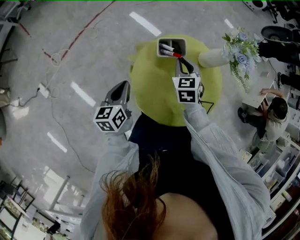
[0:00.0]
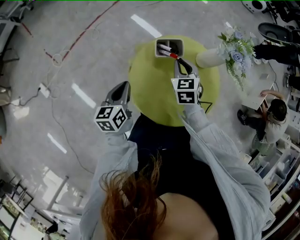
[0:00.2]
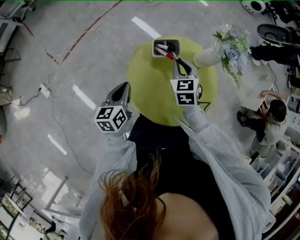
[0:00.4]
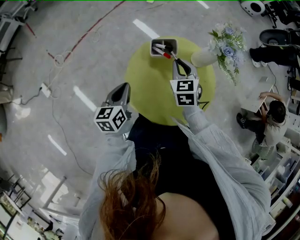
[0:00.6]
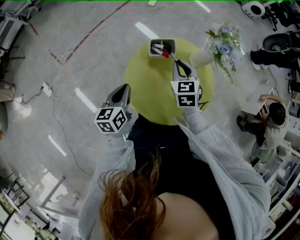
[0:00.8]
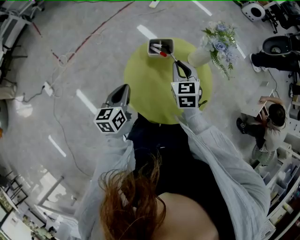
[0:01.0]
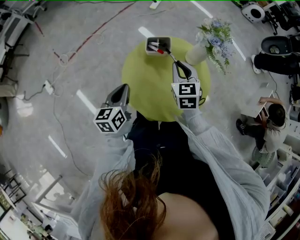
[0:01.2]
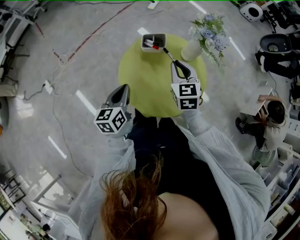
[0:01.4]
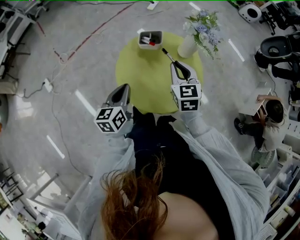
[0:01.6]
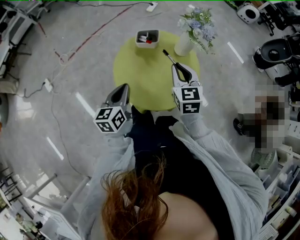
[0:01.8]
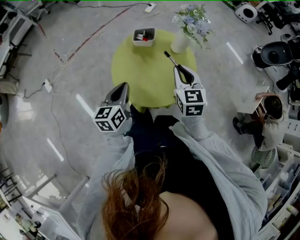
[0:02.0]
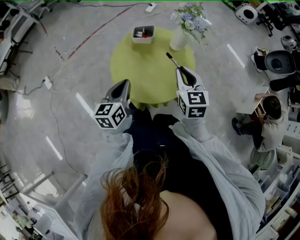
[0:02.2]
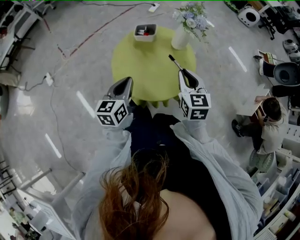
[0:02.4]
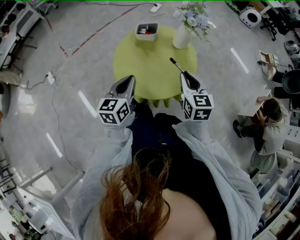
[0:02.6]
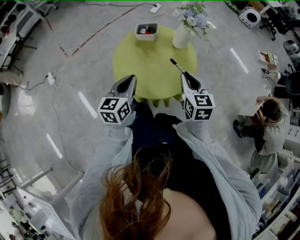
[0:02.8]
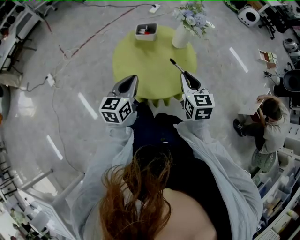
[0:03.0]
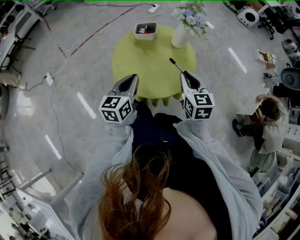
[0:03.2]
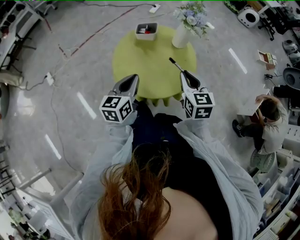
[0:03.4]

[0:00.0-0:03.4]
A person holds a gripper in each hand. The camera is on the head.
0:00.0 to 0:01.6: The right gripper shifts about 15 cm backward, upward and to the right; the left gripper moves to the right and backward, roughly 15 cm.
0:01.6 to 0:03.4: The right gripper moves backward and to the right, approximately 15 cm, while the left gripper travels to the right and backward by approximately 10 cm.

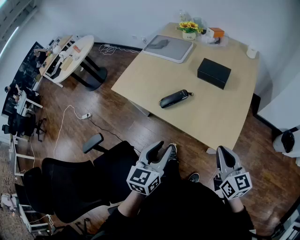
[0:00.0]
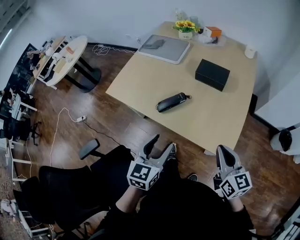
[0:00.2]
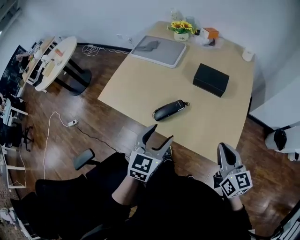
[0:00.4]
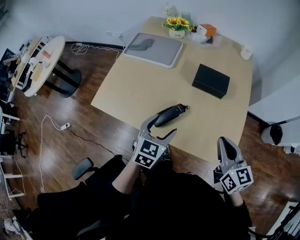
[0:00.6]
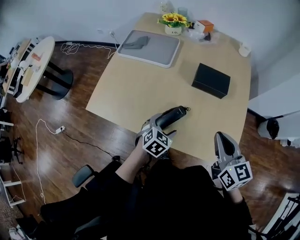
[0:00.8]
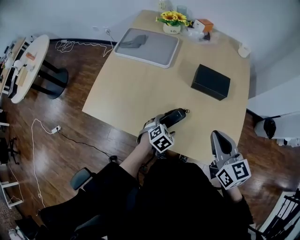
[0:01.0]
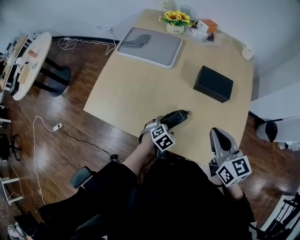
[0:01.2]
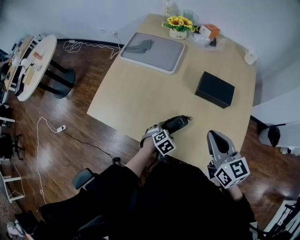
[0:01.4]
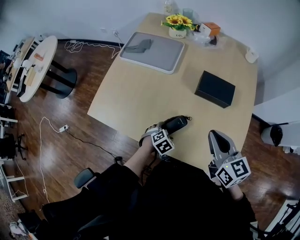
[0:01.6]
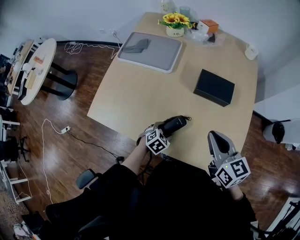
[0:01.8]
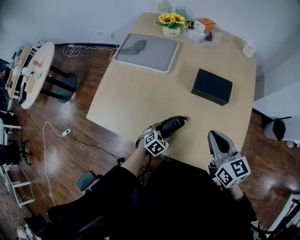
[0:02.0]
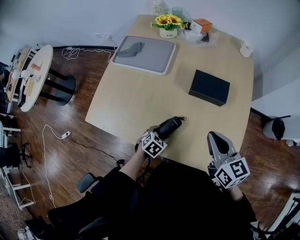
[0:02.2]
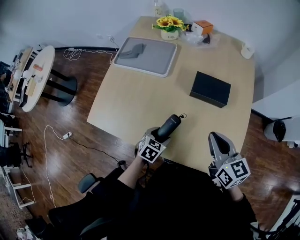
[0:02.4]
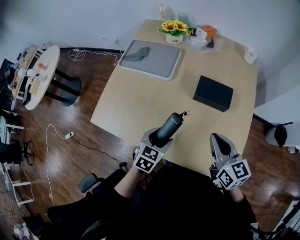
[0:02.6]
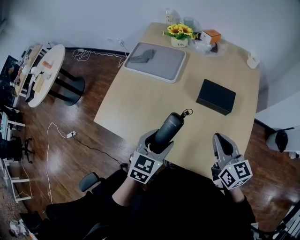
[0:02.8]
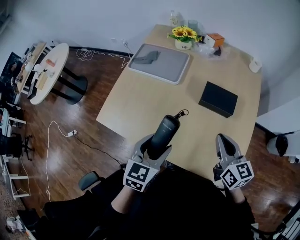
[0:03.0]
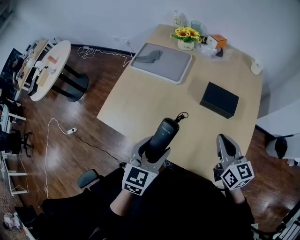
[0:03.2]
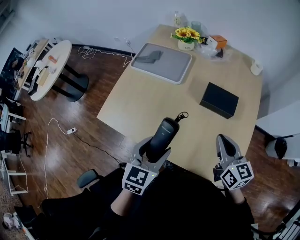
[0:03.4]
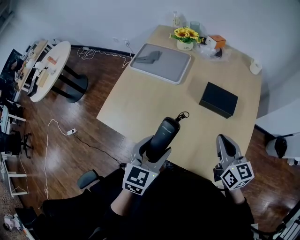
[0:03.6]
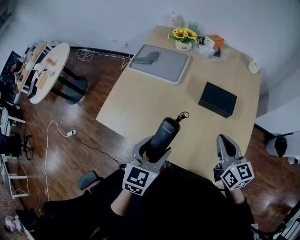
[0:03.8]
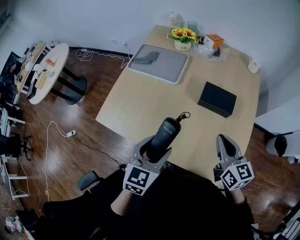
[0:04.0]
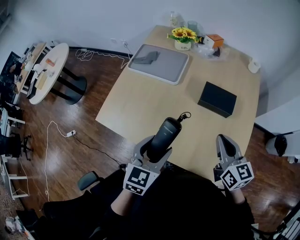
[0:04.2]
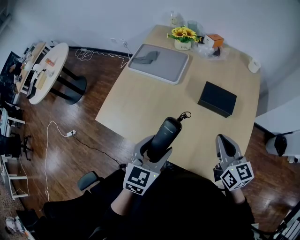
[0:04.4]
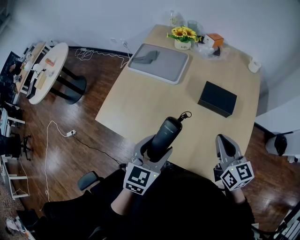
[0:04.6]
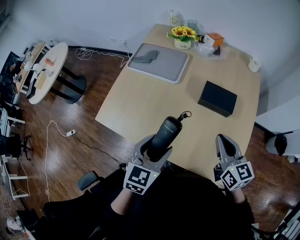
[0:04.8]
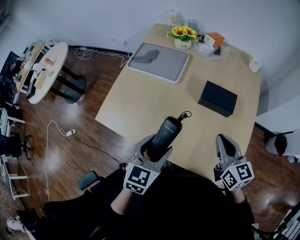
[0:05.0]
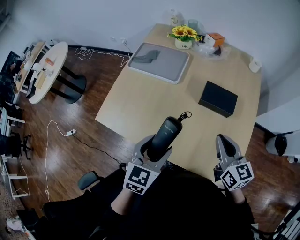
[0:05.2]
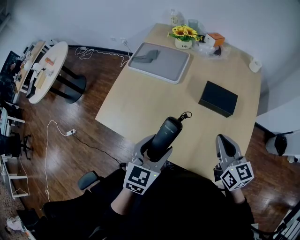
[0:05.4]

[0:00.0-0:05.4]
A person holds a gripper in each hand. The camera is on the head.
0:00.0 to 0:01.4: The left gripper shifts some 40 cm downward and forward, tips its fingers downward by approximately 50 degrees, and opens up; the right gripper goes some 30 cm forward and to the left.
0:01.4 to 0:02.8: The left gripper moves upward, roughly 25 cm, and tilts its fingers roughly 30 degrees upward.
0:02.8 to 0:04.0: The left gripper changes place by approximately 5 cm.
0:04.0 to 0:05.4: Both grippers stay put.

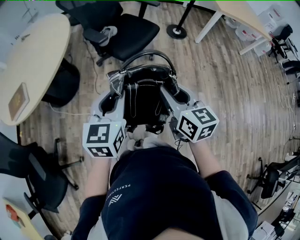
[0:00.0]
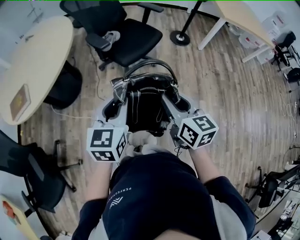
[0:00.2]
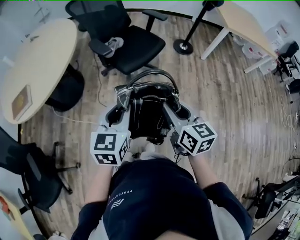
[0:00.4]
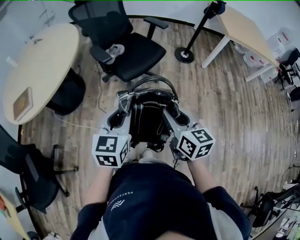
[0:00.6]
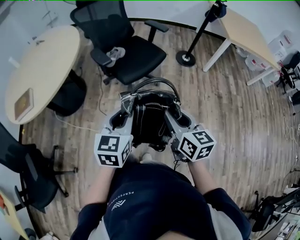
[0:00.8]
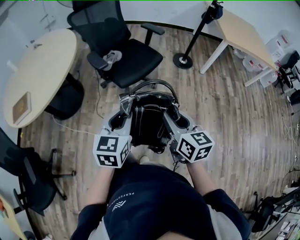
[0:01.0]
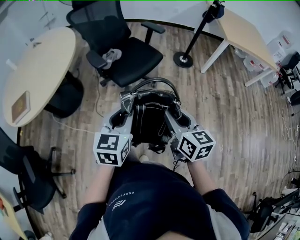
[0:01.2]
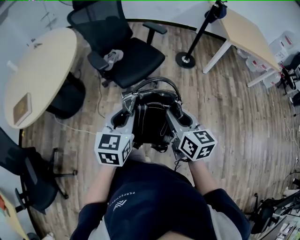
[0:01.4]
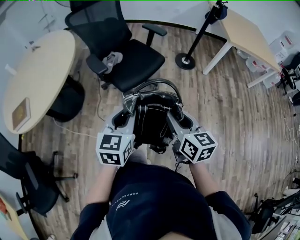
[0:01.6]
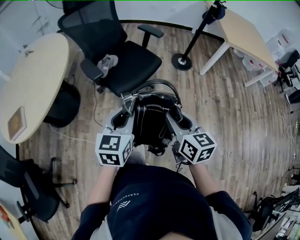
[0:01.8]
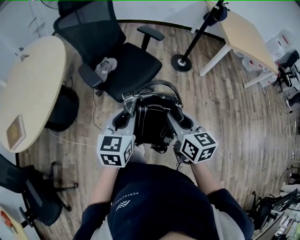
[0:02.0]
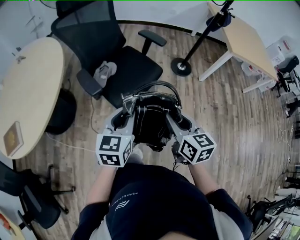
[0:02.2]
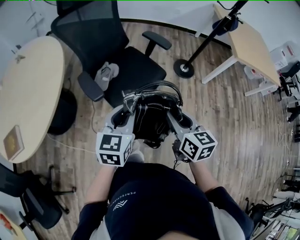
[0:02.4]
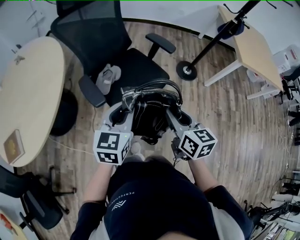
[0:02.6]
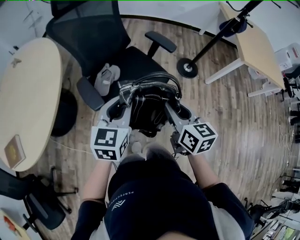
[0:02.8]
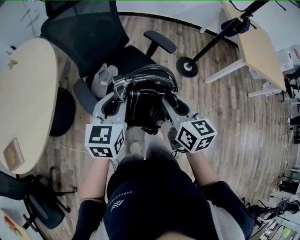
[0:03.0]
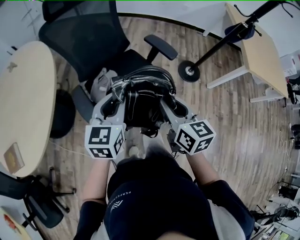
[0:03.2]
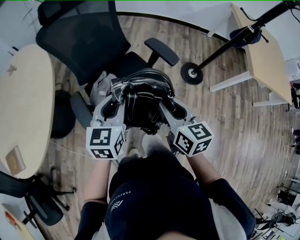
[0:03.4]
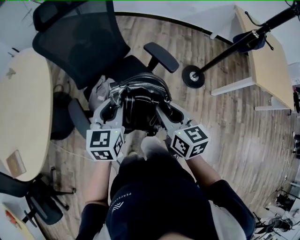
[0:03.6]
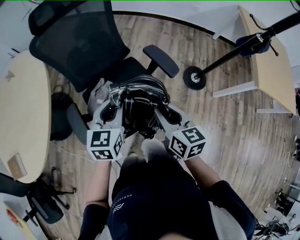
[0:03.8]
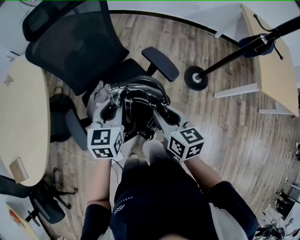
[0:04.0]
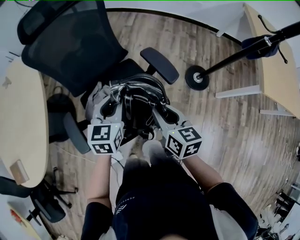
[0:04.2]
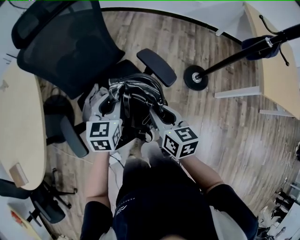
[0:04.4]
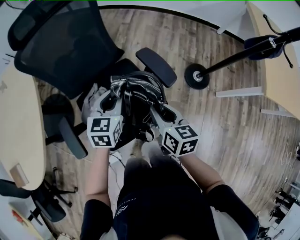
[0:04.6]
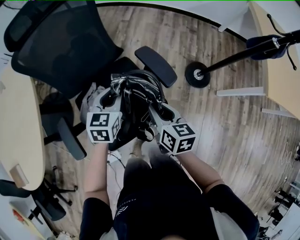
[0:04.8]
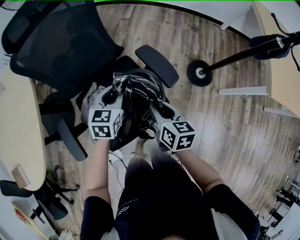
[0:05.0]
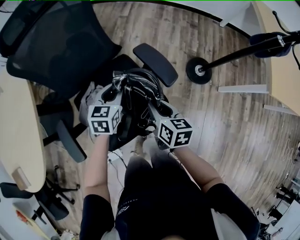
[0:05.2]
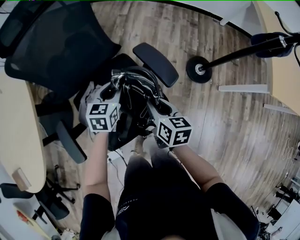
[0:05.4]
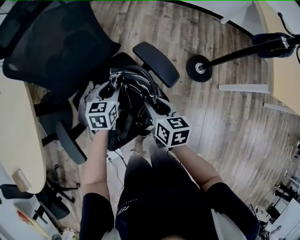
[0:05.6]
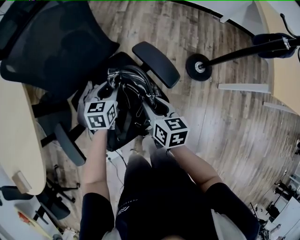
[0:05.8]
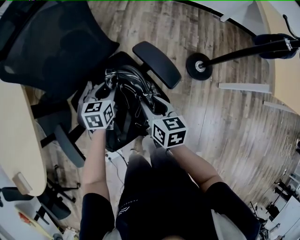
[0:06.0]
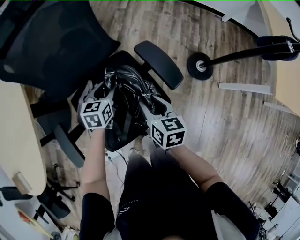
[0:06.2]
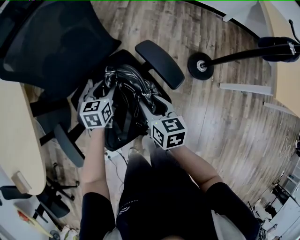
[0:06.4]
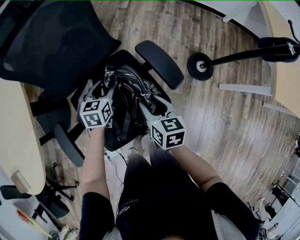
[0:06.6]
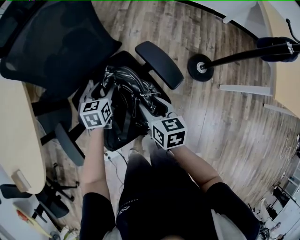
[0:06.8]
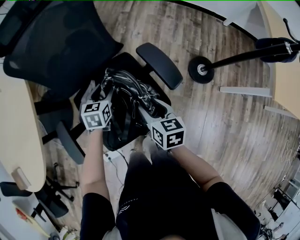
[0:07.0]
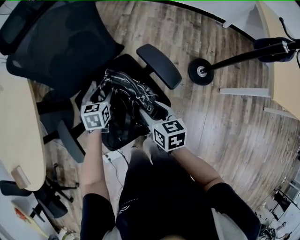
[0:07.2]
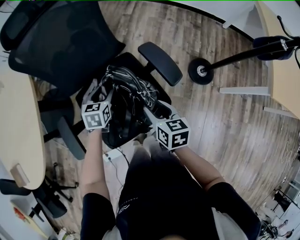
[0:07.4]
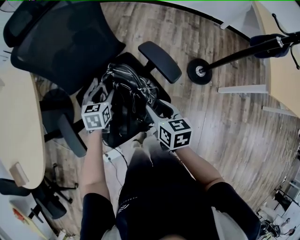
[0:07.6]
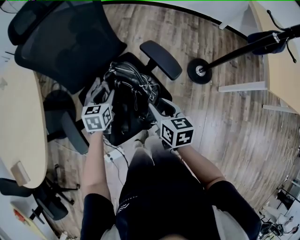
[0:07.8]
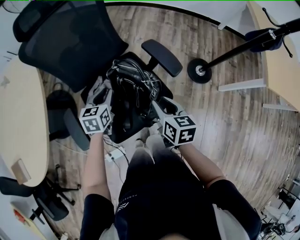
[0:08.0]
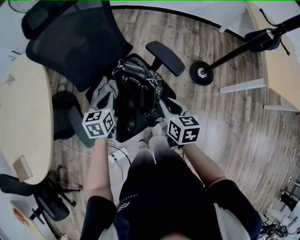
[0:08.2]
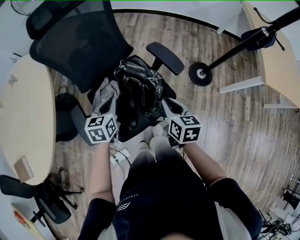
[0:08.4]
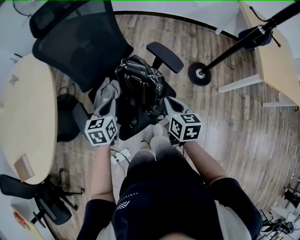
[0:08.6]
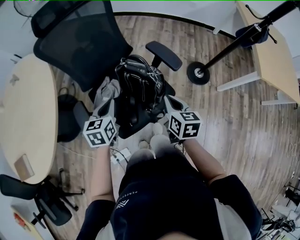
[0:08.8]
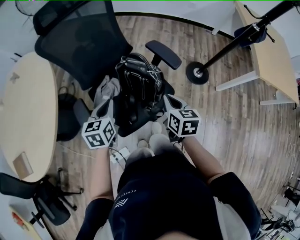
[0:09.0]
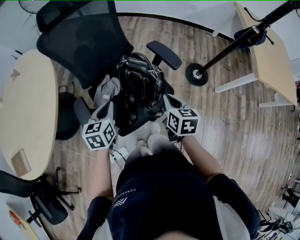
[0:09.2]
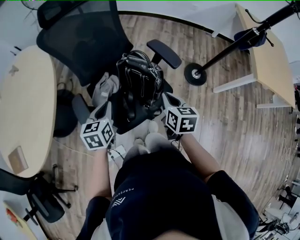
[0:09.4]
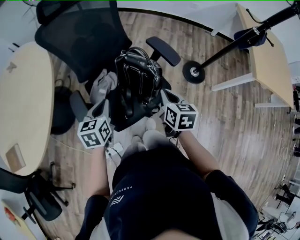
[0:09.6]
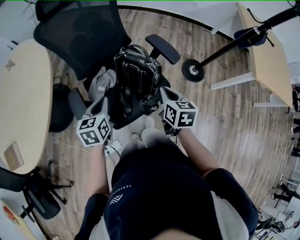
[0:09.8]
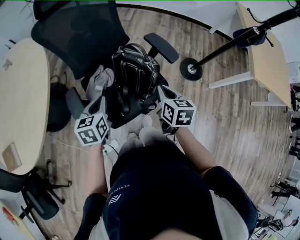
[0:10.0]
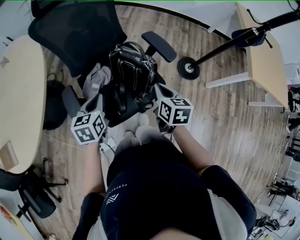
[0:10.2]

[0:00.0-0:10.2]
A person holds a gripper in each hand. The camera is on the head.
0:00.0 to 0:01.4: The two grippers go some 15 cm to the right and forward.
0:01.4 to 0:03.0: Both grippers travel together forward, roughly 35 cm.
0:03.0 to 0:04.4: The grippers both shift forward and downward by roughly 25 cm.
0:04.4 to 0:05.8: Both grippers move downward and forward, roughly 15 cm.
0:05.8 to 0:07.2: The left gripper moves to the left, about 5 cm, and opens.
0:07.2 to 0:08.8: The left gripper travels backward and upward by approximately 20 cm, and closes up, while the right gripper travels backward and upward by some 10 cm, and closes its fingers.
0:08.8 to 0:10.2: The grippers move only a little.

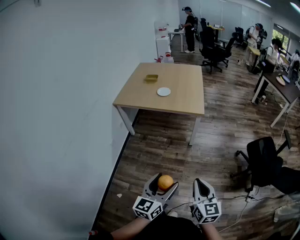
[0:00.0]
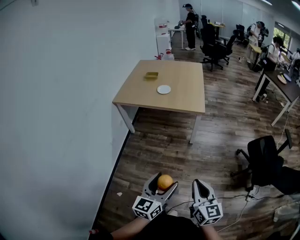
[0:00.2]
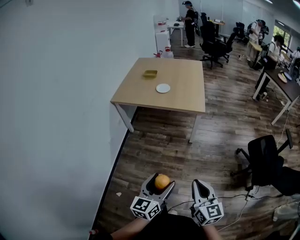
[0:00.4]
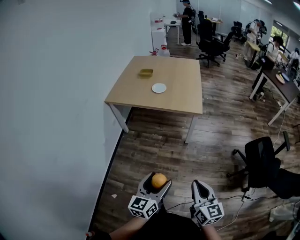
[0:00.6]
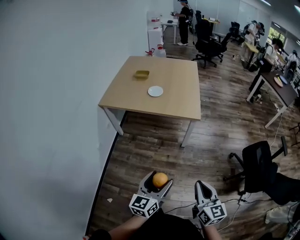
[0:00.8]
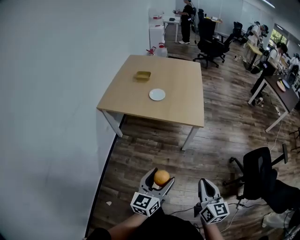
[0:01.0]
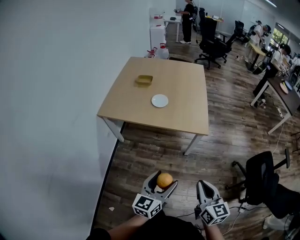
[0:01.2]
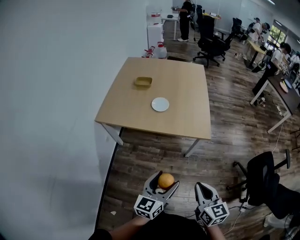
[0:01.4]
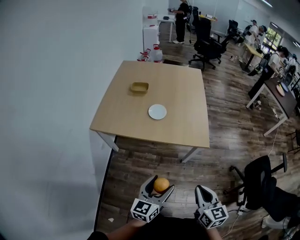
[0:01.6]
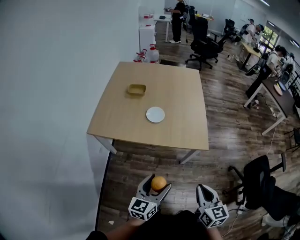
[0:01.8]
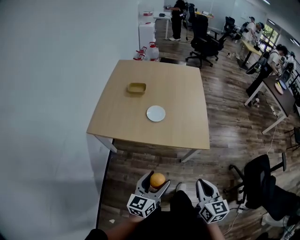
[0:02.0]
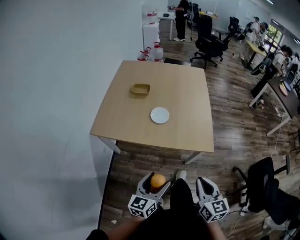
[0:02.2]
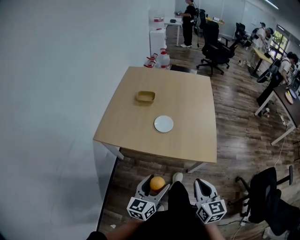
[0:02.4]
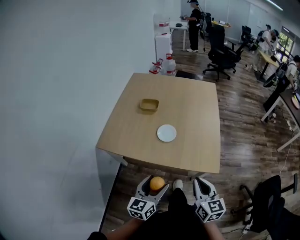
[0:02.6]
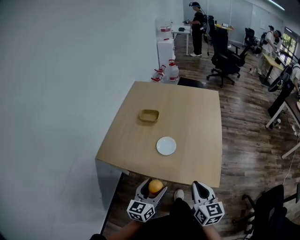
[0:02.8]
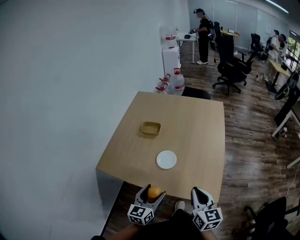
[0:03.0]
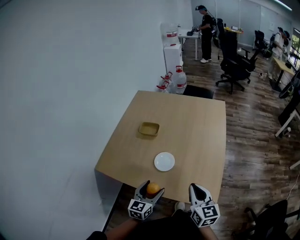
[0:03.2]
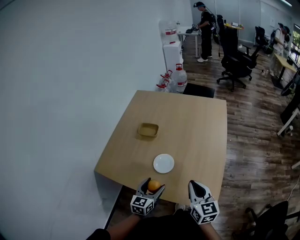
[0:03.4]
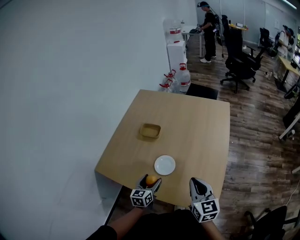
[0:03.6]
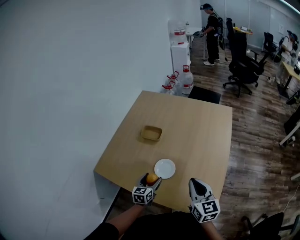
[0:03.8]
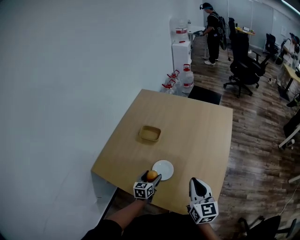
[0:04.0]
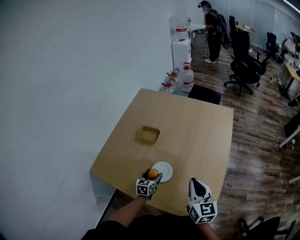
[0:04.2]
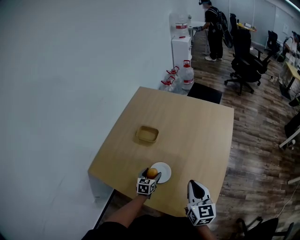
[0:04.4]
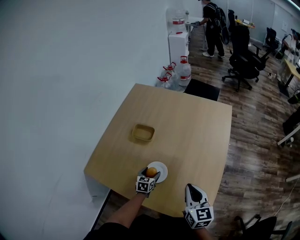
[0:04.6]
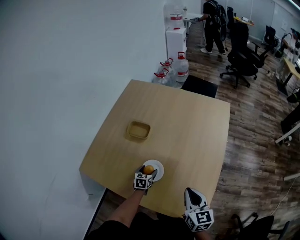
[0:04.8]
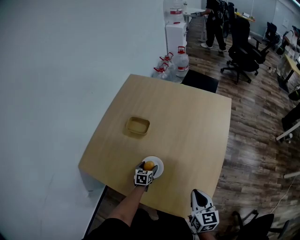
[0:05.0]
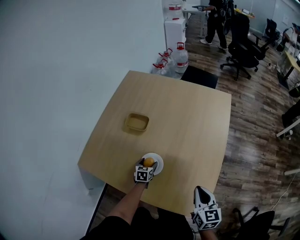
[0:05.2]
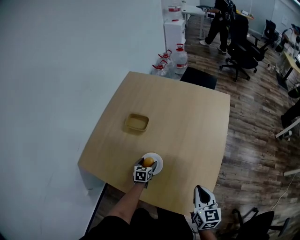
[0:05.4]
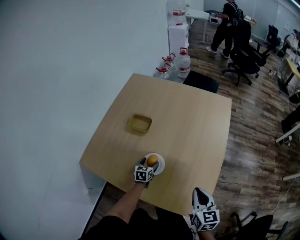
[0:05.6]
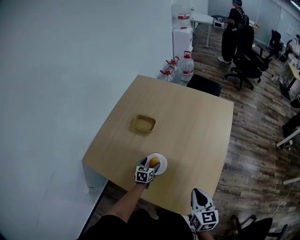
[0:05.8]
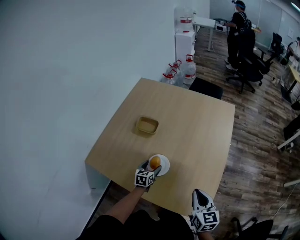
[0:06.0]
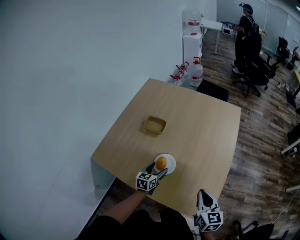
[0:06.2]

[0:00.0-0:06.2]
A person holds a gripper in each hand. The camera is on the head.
0:00.0 to 0:01.6: Both grippers move forward, approximately 40 cm.
0:01.6 to 0:03.2: Both grippers move forward, some 35 cm.
0:03.2 to 0:04.6: The left gripper shifts about 30 cm forward and downward, and changes its angle by about 20 degrees, while the right gripper travels forward by approximately 15 cm.
0:04.6 to 0:06.2: The left gripper heads upward, covering some 5 cm. Meanwhile the right gripper goes about 5 cm backward.
